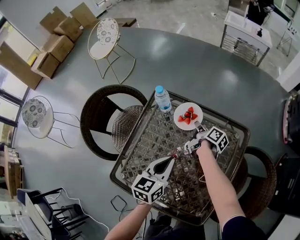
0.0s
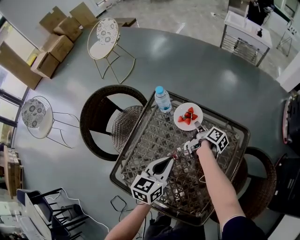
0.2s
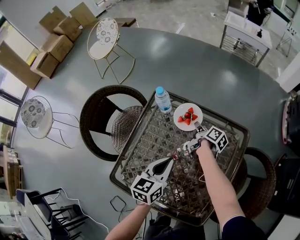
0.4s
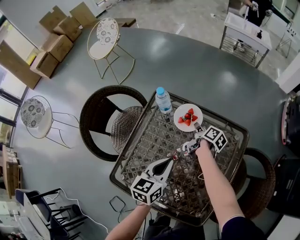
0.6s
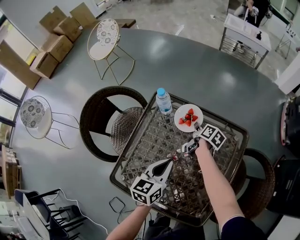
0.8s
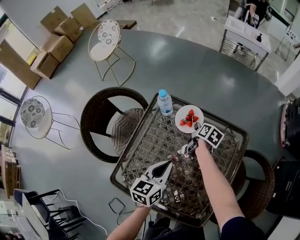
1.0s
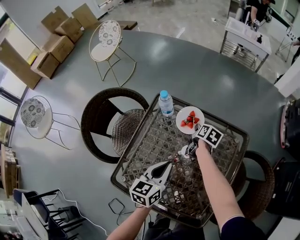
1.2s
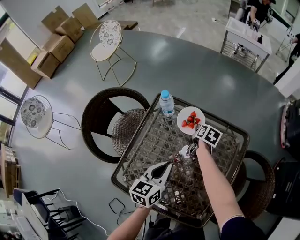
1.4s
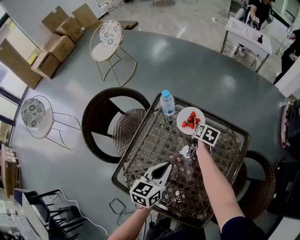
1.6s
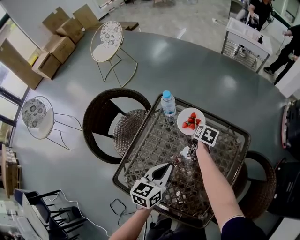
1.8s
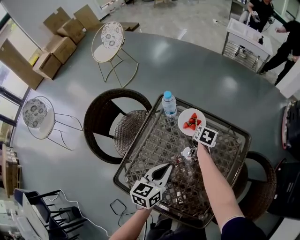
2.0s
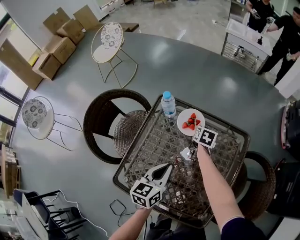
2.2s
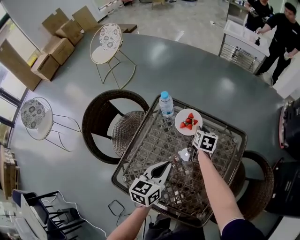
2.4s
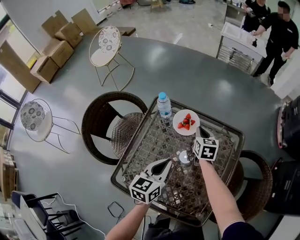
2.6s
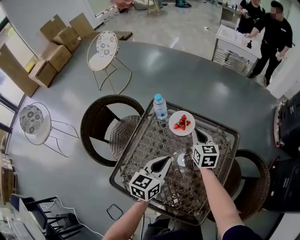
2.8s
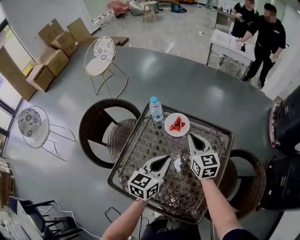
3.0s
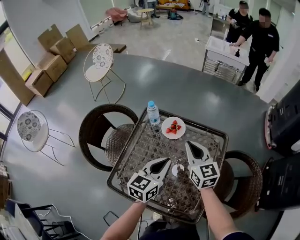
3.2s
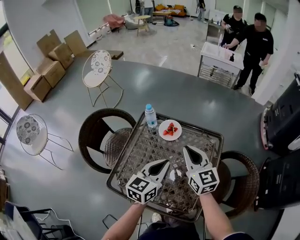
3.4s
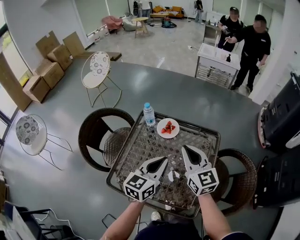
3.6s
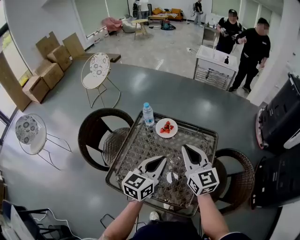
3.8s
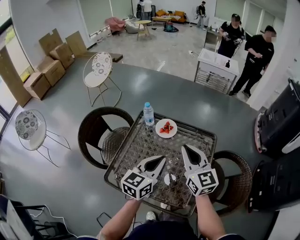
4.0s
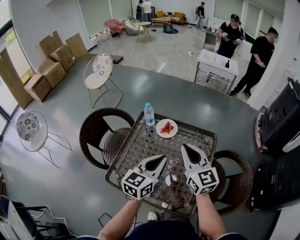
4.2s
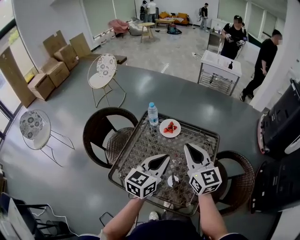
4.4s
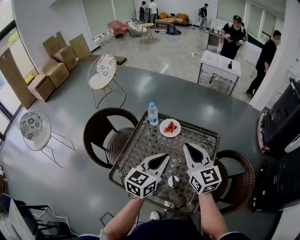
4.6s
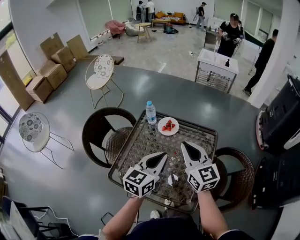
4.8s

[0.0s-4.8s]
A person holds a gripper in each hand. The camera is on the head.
0.0s to 1.6s: The right gripper swivels some 50 degrees.
1.6s to 3.2s: The left gripper goes some 10 cm upward and to the right. Meanwhile the right gripper goes about 30 cm upward and backward, and tips its fingers upward by about 40 degrees.
3.2s to 4.8s: The two grippers go approximately 15 cm upward and backward.

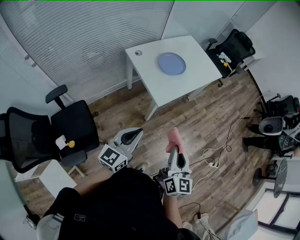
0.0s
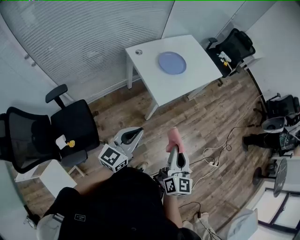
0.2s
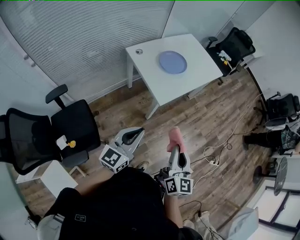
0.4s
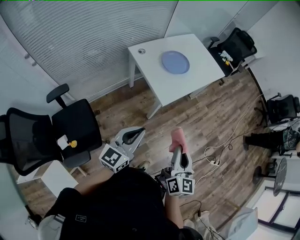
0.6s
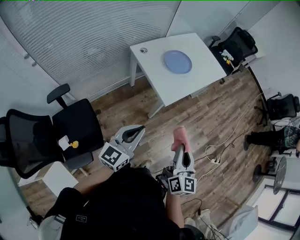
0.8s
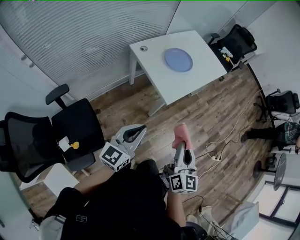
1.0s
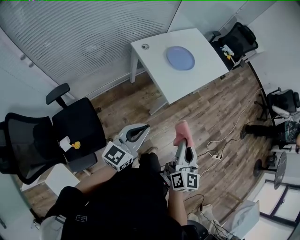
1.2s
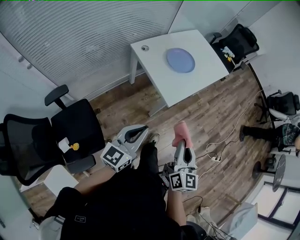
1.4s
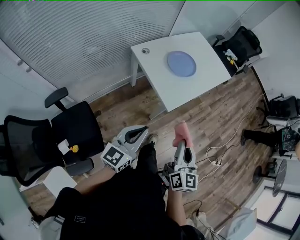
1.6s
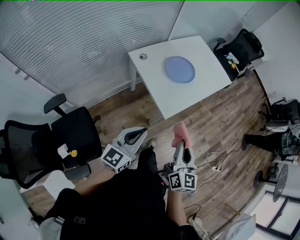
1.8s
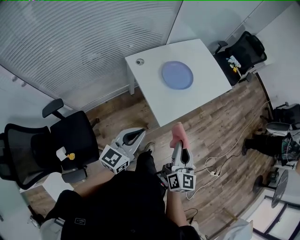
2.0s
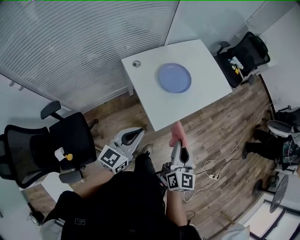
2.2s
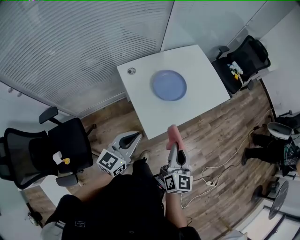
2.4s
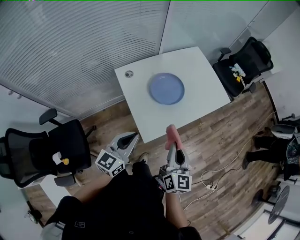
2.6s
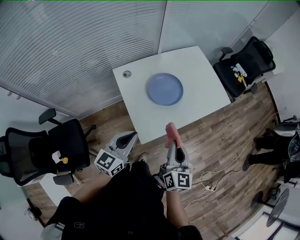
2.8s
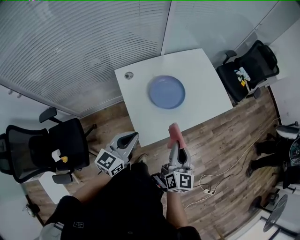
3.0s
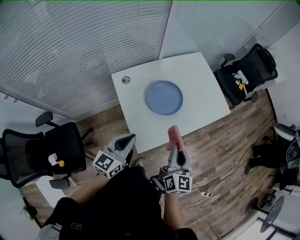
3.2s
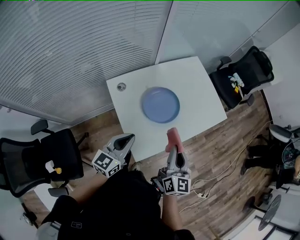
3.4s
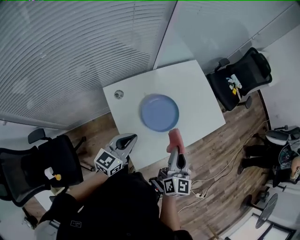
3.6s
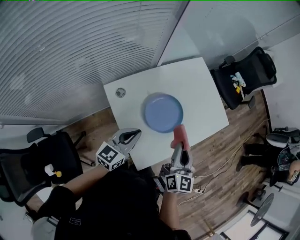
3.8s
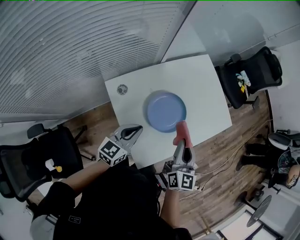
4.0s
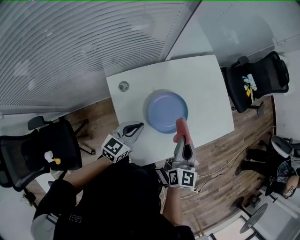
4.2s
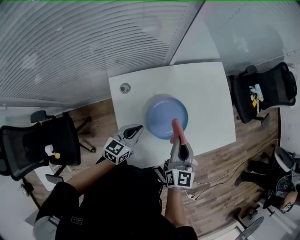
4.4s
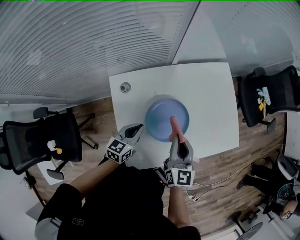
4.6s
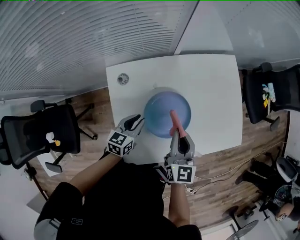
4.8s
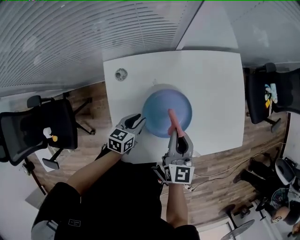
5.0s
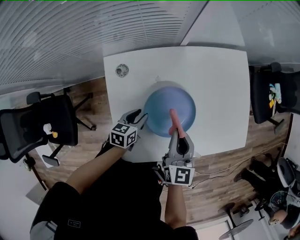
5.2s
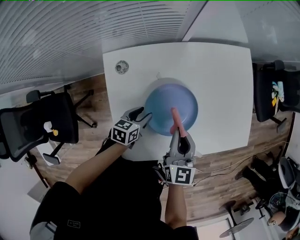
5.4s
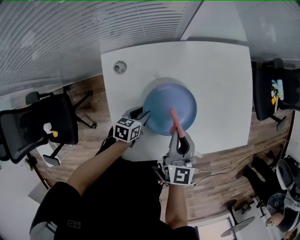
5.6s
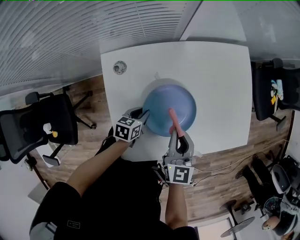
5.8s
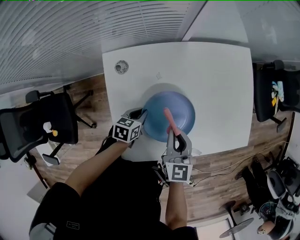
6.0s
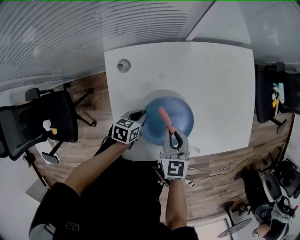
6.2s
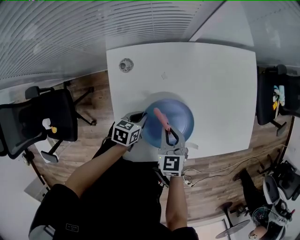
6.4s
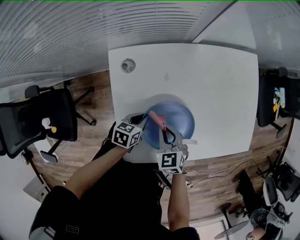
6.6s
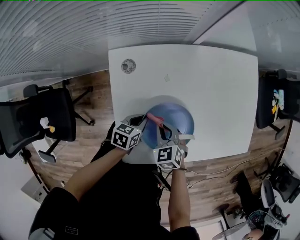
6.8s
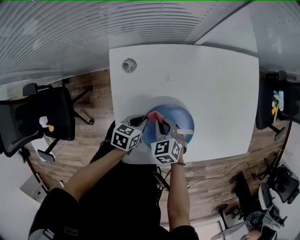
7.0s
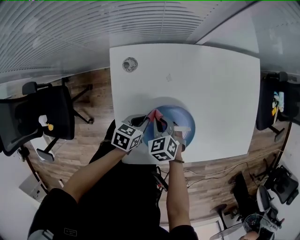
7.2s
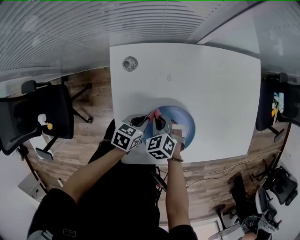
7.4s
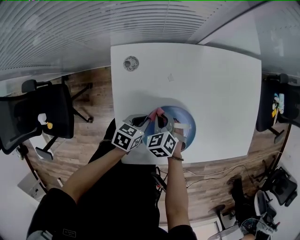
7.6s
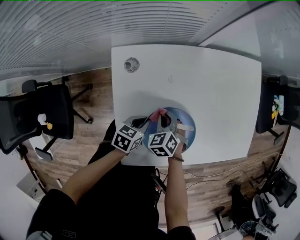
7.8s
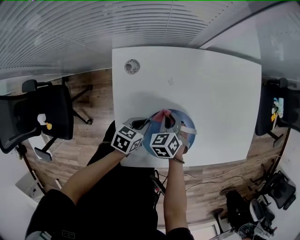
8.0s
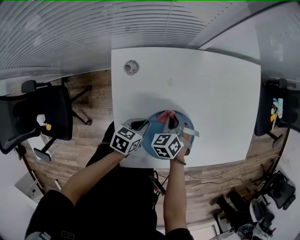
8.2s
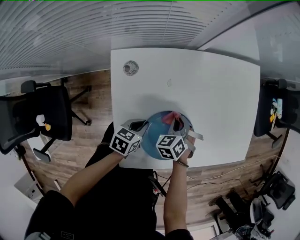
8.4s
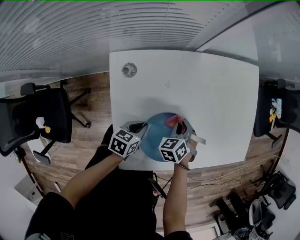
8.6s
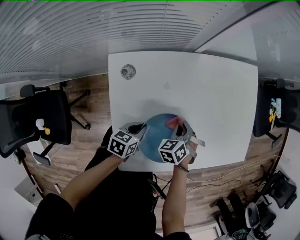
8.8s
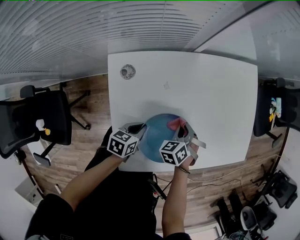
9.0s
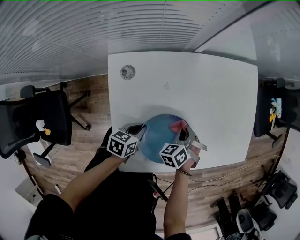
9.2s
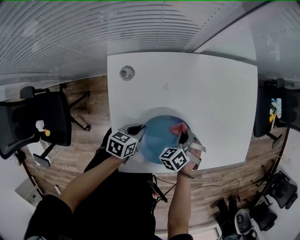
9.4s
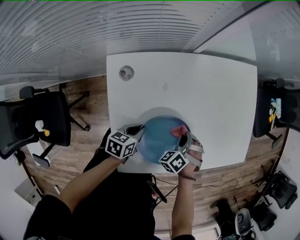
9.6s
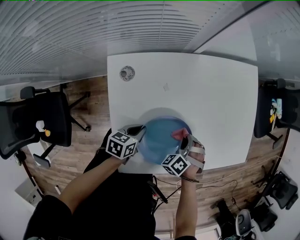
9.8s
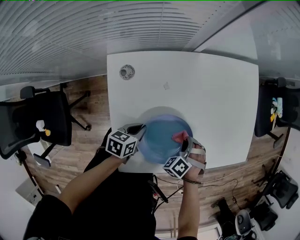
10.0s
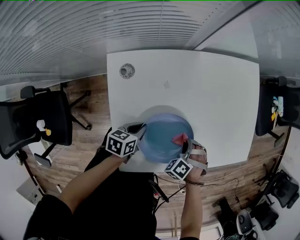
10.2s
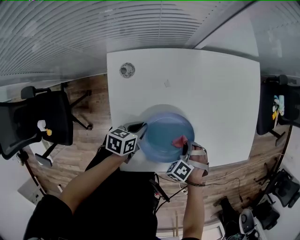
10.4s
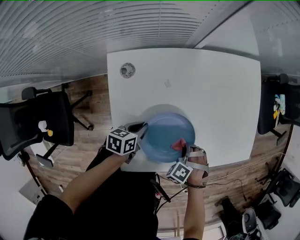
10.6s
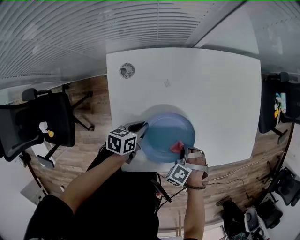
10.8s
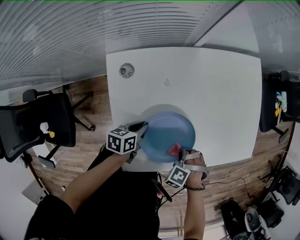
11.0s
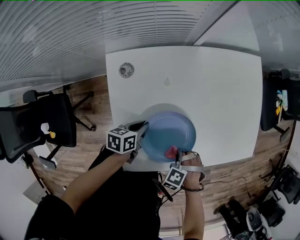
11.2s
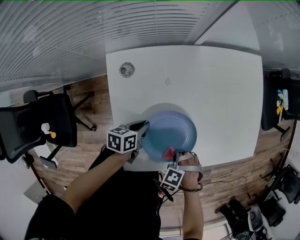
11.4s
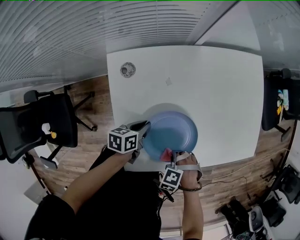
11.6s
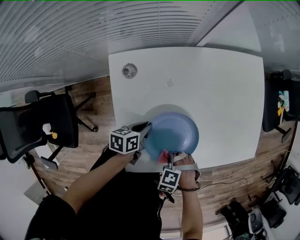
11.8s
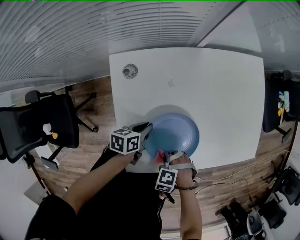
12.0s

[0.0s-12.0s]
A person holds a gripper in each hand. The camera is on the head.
0.0s to 1.6s: Both grippers travel together to the left and forward, roughly 10 cm.
1.6s to 3.0s: The two grippers go about 30 cm forward.
3.0s to 4.4s: The left gripper is displaced forward and downward by some 30 cm, while the right gripper goes about 25 cm forward.
4.4s to 6.0s: The right gripper goes about 10 cm downward, and turns by about 20 degrees. Meanwhile the left gripper moves downward, some 20 cm, swivels some 30 degrees, and opens, then closes once more.
6.0s to 7.6s: The right gripper moves downward and to the left, approximately 20 cm, and points its fingers about 30 degrees further downward.
7.6s to 9.0s: The right gripper shifts approximately 15 cm to the right and forward, and changes its angle by approximately 20 degrees.
9.0s to 10.4s: The right gripper is displaced to the right and backward by approximately 10 cm, and turns by approximately 40 degrees.
10.4s to 12.0s: The right gripper moves about 15 cm, and rotates approximately 30 degrees.

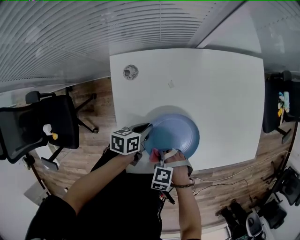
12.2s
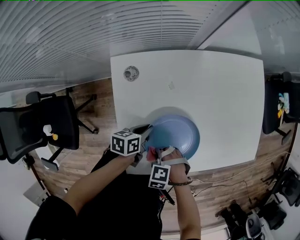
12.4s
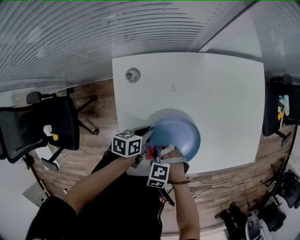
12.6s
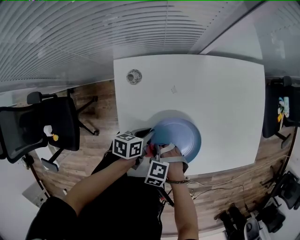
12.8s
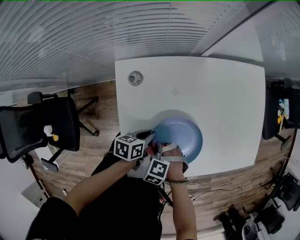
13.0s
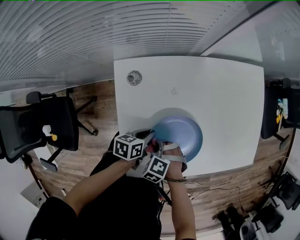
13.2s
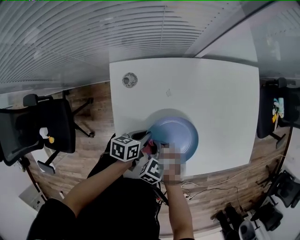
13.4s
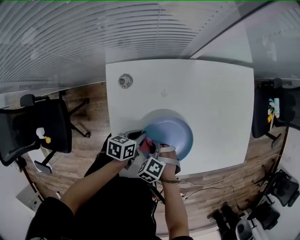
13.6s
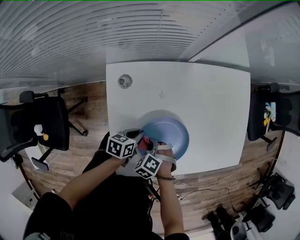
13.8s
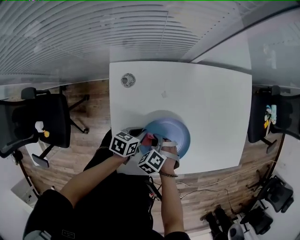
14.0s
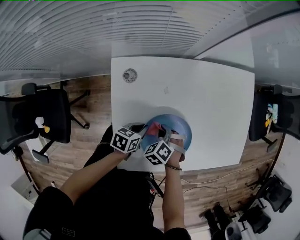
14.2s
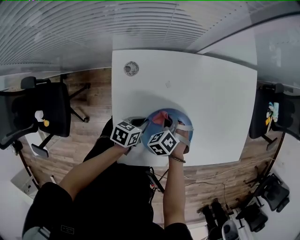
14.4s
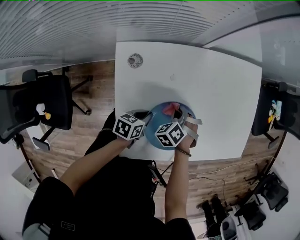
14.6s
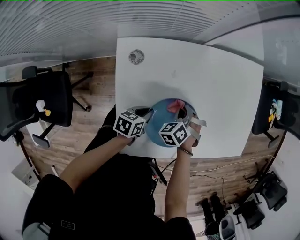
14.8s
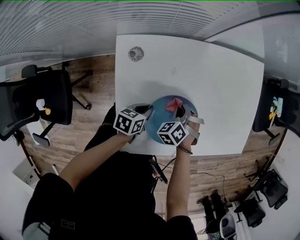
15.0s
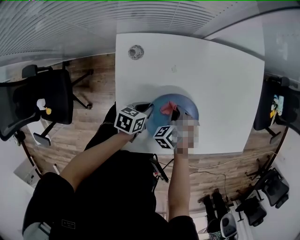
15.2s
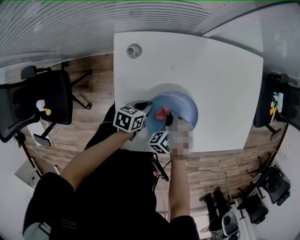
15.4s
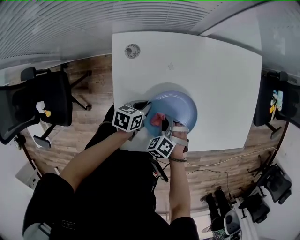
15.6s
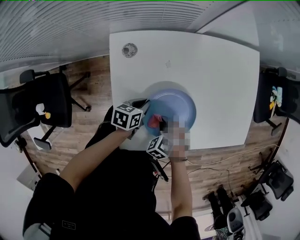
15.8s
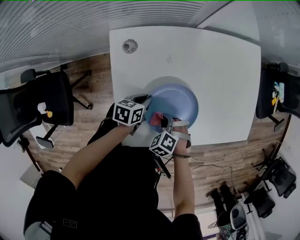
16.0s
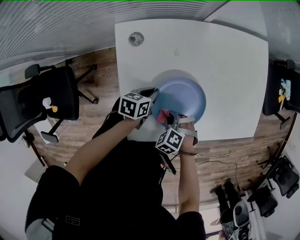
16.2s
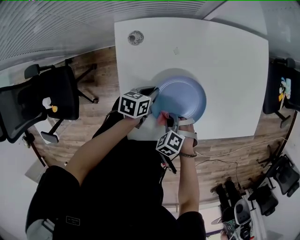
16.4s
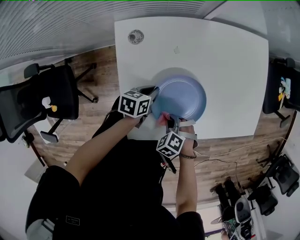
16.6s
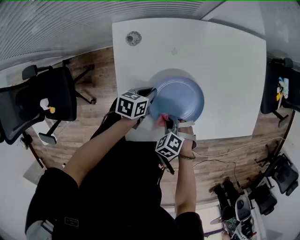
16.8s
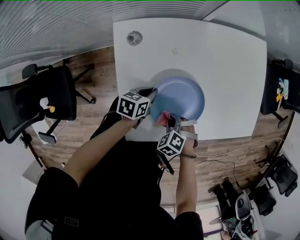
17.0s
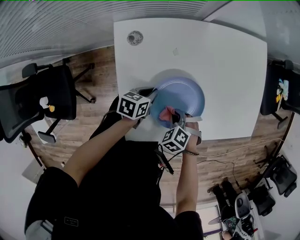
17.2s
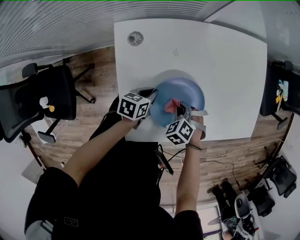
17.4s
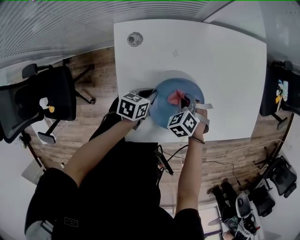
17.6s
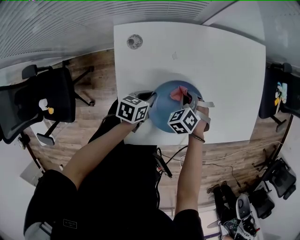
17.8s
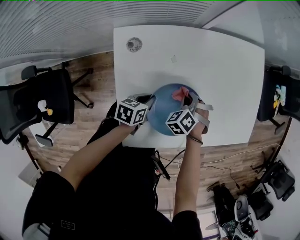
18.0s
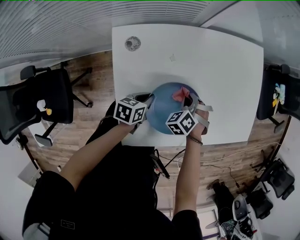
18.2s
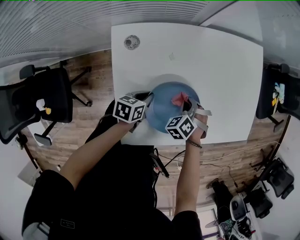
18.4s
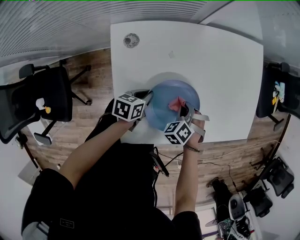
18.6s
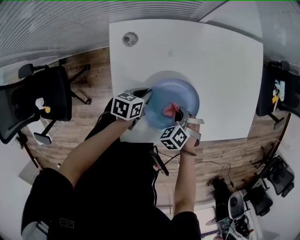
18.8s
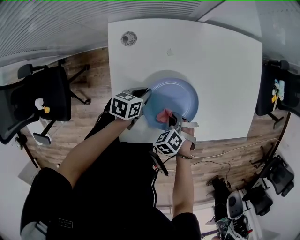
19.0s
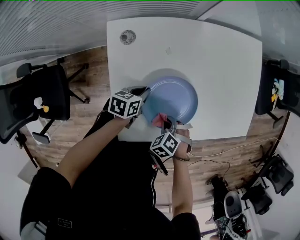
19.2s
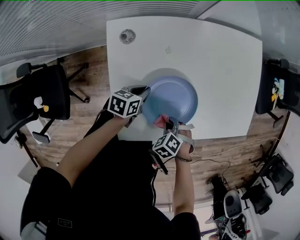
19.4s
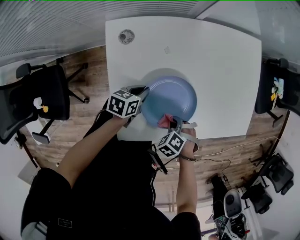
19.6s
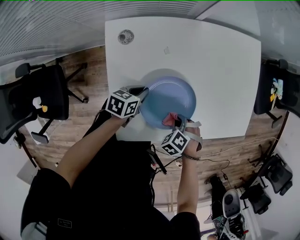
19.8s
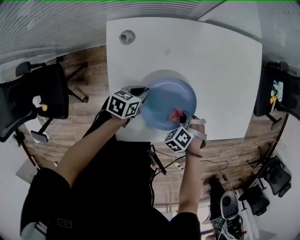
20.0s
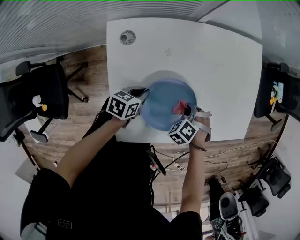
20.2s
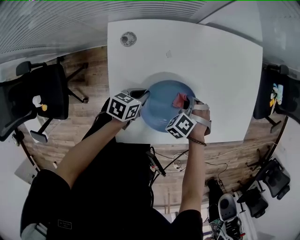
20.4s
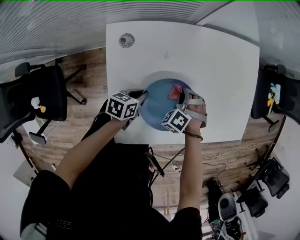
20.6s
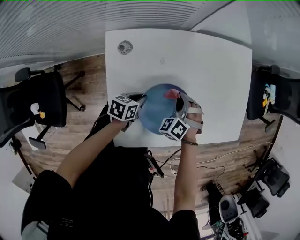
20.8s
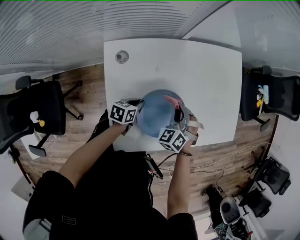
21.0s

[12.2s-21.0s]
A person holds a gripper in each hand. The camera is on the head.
12.2s to 13.6s: The right gripper ends up about 10 cm from where it was, and changes its angle by some 30 degrees.
13.6s to 15.2s: The right gripper changes place by about 10 cm.
15.2s to 16.6s: The right gripper shifts by approximately 15 cm, and turns by about 20 degrees.
16.6s to 18.0s: The right gripper ends up about 20 cm from where it was, and turns by approximately 20 degrees.
18.0s to 19.6s: The right gripper shifts by approximately 15 cm, and changes its angle by some 20 degrees.
19.6s to 21.0s: The right gripper shifts by approximately 20 cm, and tilts its fingers some 40 degrees upward.
